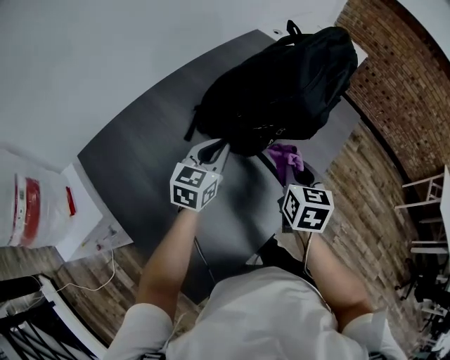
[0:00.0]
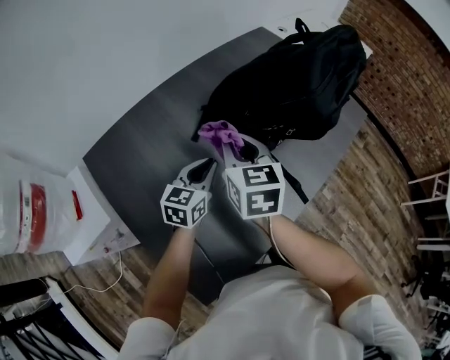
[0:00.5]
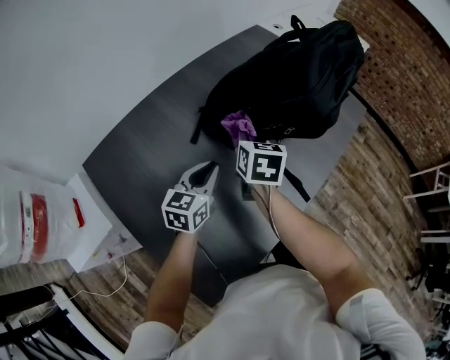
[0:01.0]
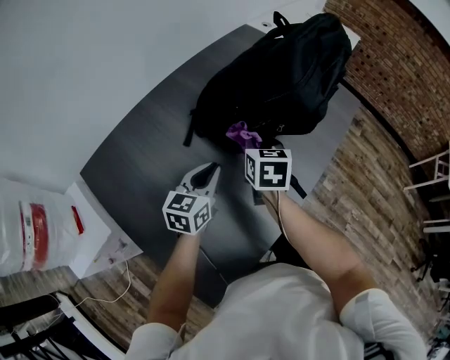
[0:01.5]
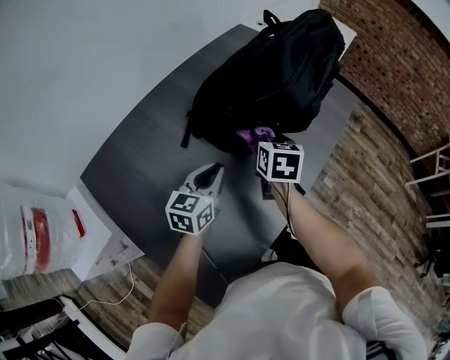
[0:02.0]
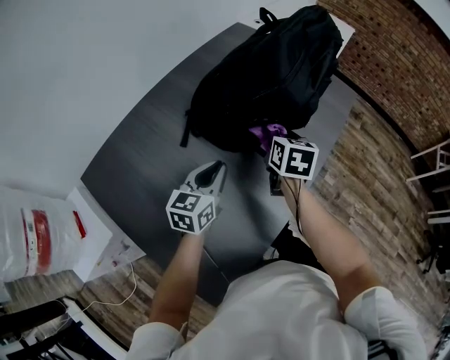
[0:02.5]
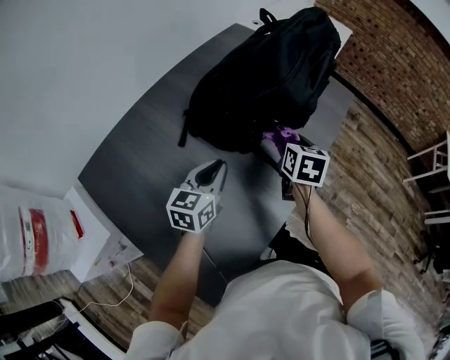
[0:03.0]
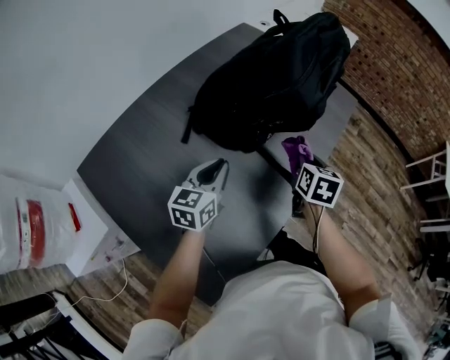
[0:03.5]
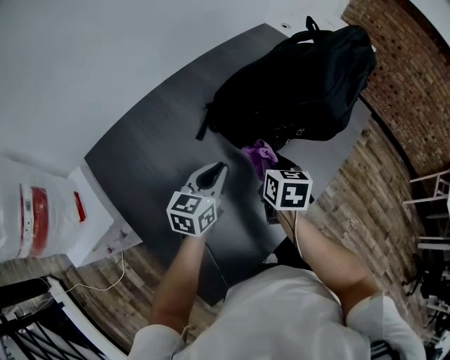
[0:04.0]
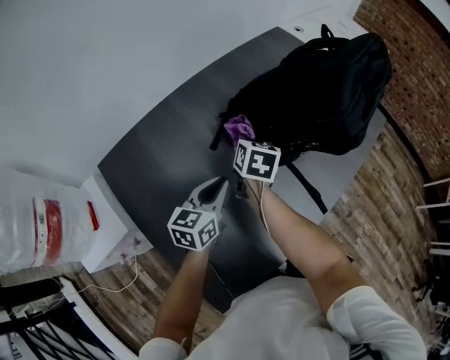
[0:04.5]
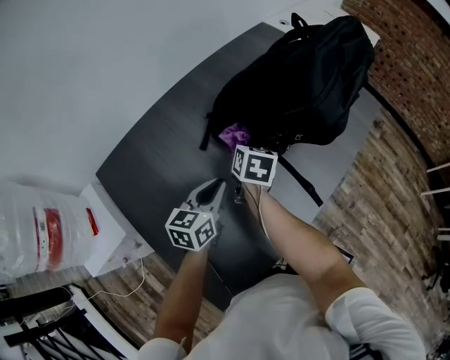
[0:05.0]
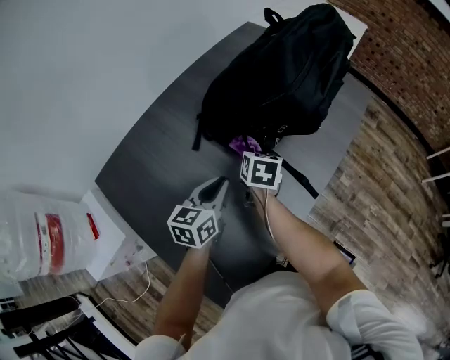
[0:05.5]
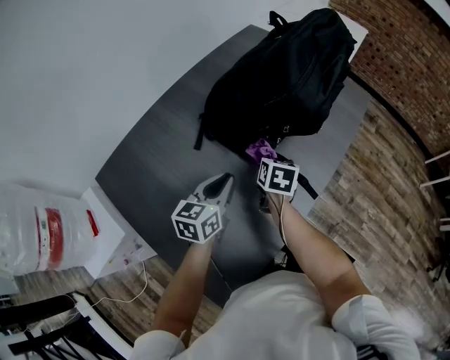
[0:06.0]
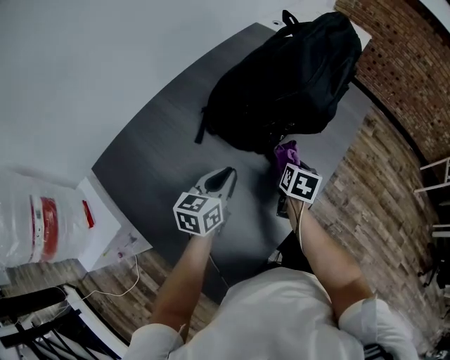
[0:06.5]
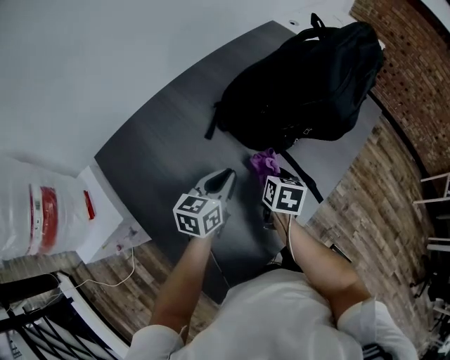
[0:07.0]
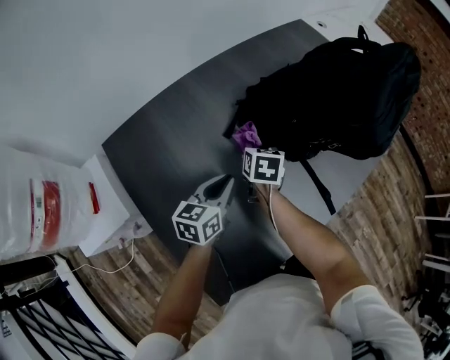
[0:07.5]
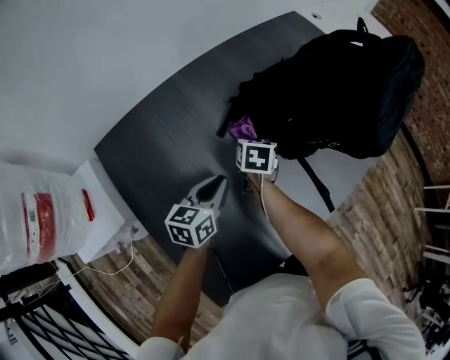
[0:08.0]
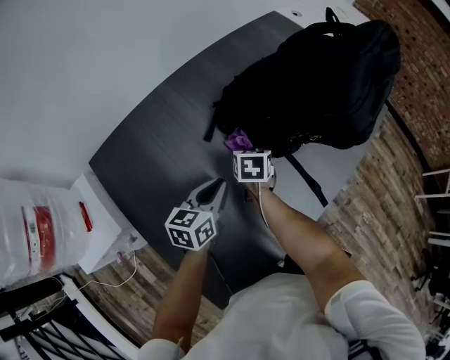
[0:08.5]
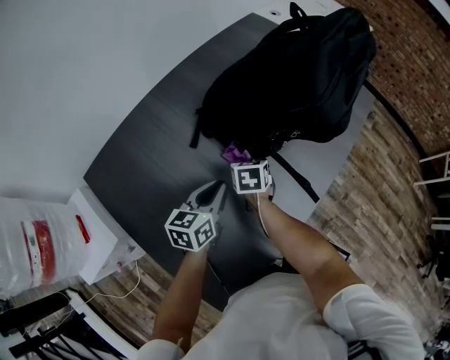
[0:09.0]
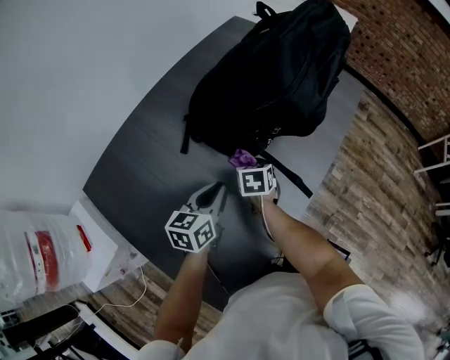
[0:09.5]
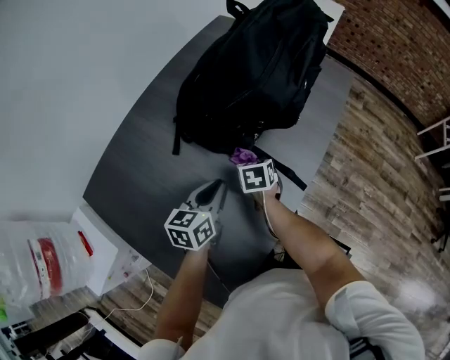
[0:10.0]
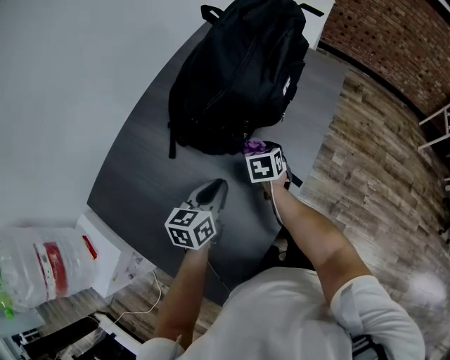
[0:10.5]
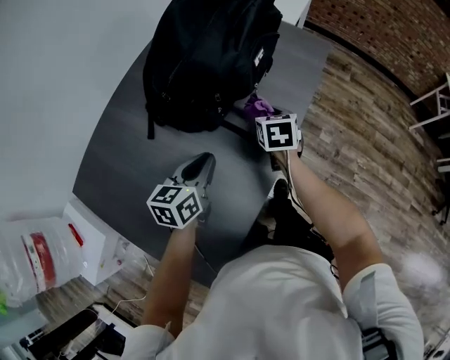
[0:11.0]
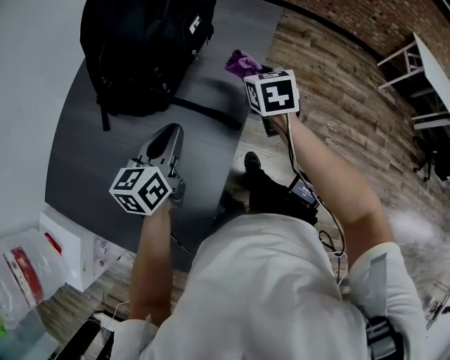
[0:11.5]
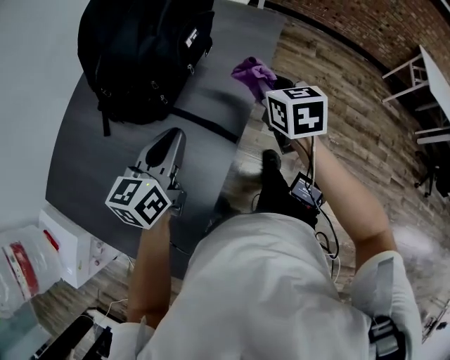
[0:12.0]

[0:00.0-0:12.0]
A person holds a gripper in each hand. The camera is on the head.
0:00.0 to 0:02.0: The right gripper shifts approximately 5 cm forward, and reaches roughly 20 cm to the left, then returns, while the left gripper ends up some 5 cm from where it was.
0:02.0 to 0:04.0: The right gripper travels backward by roughly 5 cm, and travels to the right and back again, some 10 cm each way.
0:04.0 to 0:06.0: The right gripper is displaced downward by roughly 5 cm, and reaches approximately 10 cm to the left, then returns.
0:06.0 to 0:08.0: The right gripper is displaced to the left by some 15 cm. The left gripper is displaced to the left and downward by some 10 cm.
0:08.0 to 0:10.0: Both grippers move to the right, roughly 15 cm.
0:10.0 to 0:12.0: The right gripper goes approximately 30 cm to the right and upward; the left gripper travels to the right and upward by roughly 20 cm.

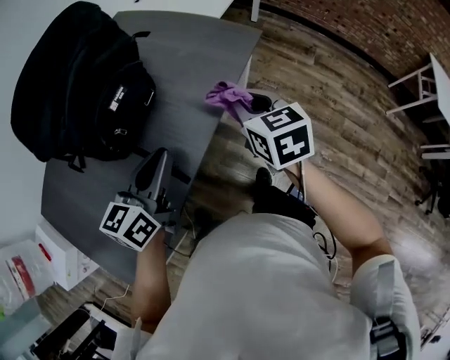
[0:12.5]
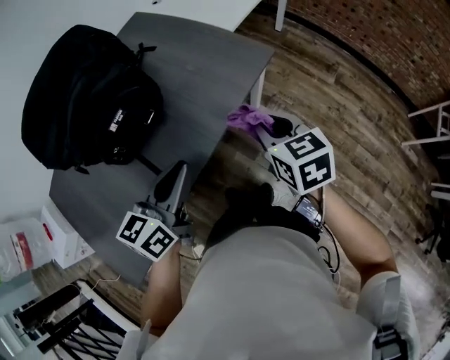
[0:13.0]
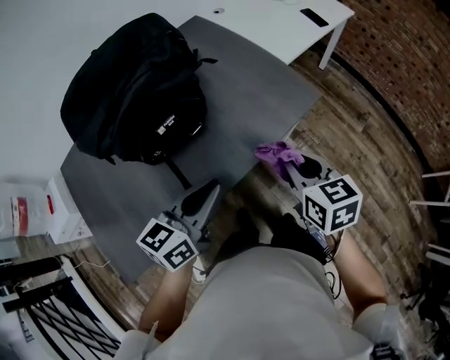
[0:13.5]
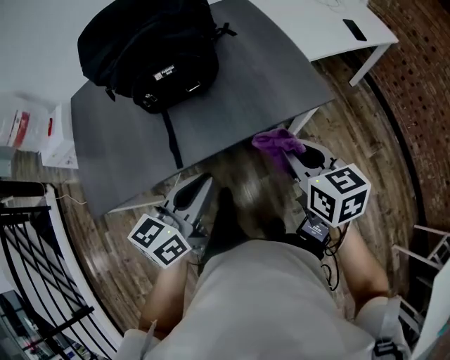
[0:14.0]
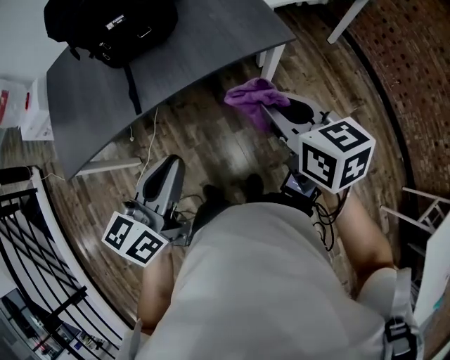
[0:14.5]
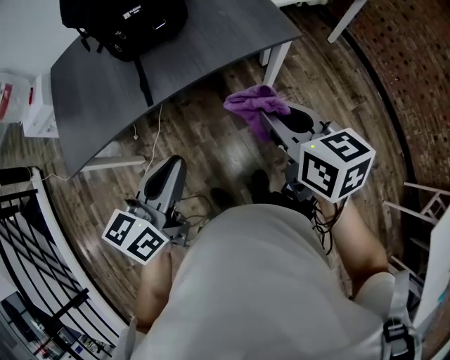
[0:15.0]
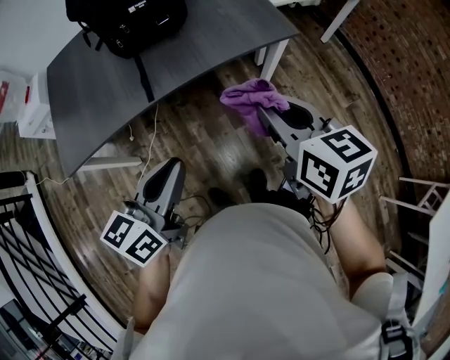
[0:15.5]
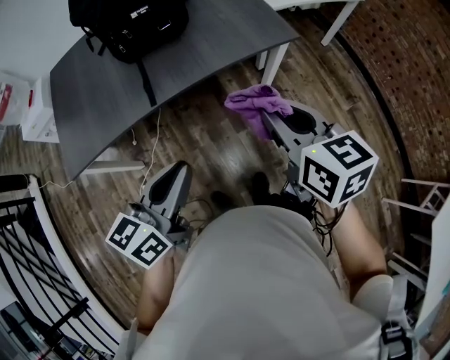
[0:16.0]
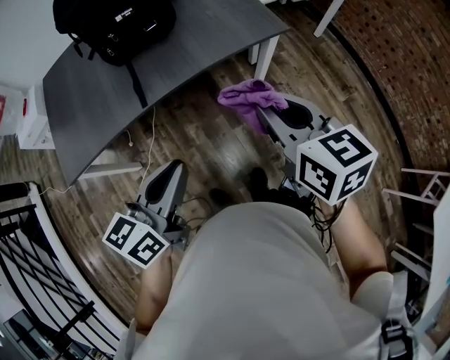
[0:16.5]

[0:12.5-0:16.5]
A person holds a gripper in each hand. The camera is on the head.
0:12.5 to 0:14.5: The right gripper ends up approximately 20 cm from where it was, and rotates some 40 degrees. Meanwhile the left gripper moves roughly 30 cm, and turns by approximately 40 degrees.
0:14.5 to 0:16.5: The right gripper shifts roughly 10 cm backward and to the left, while the left gripper goes roughly 5 cm backward.

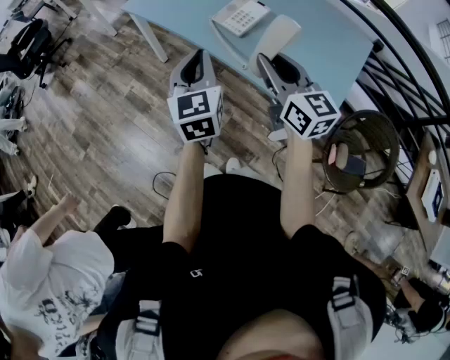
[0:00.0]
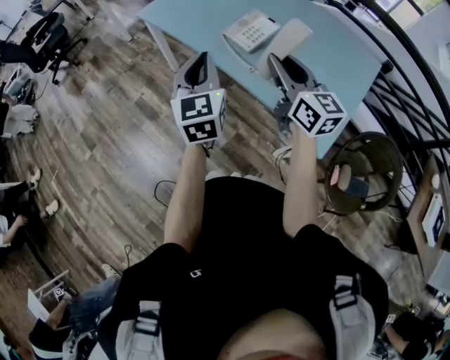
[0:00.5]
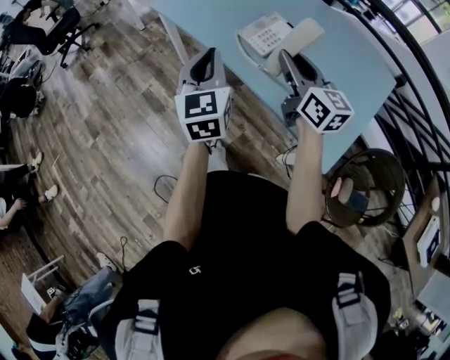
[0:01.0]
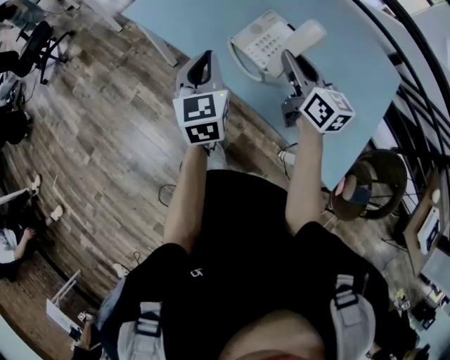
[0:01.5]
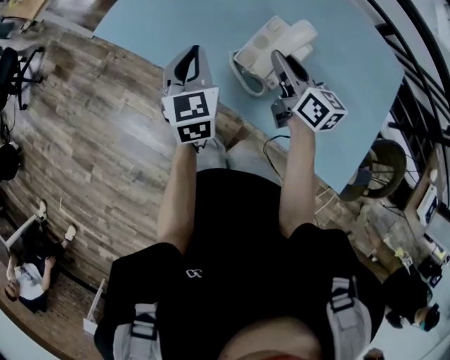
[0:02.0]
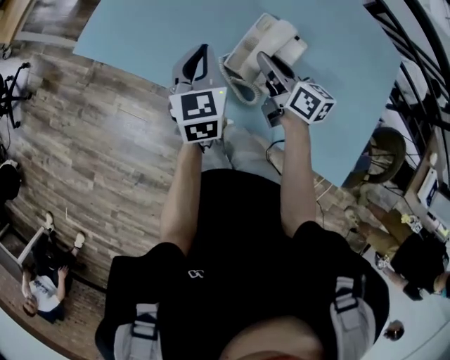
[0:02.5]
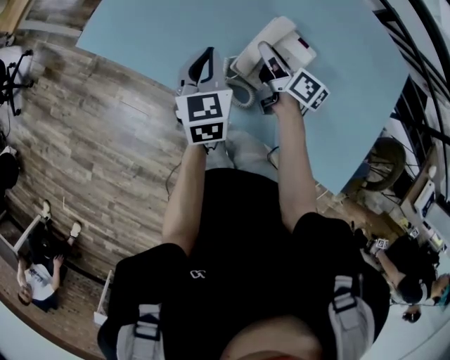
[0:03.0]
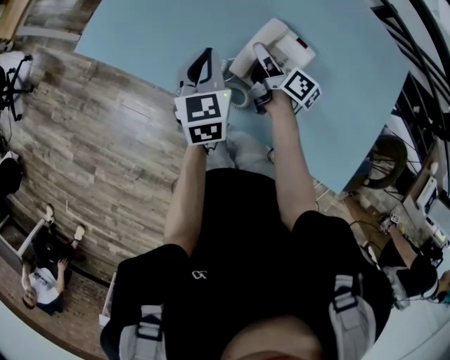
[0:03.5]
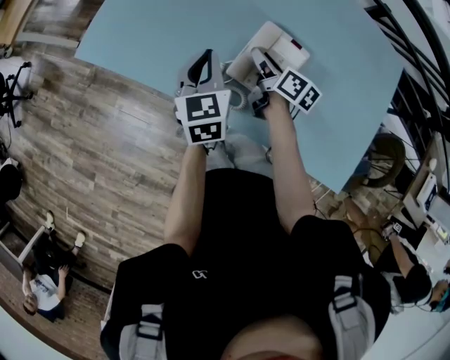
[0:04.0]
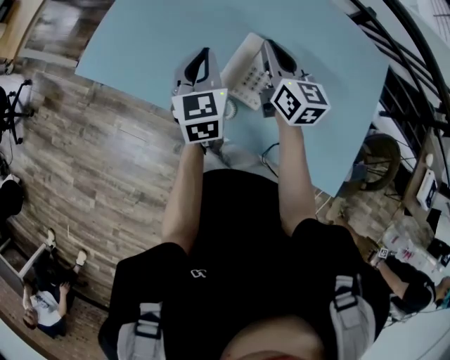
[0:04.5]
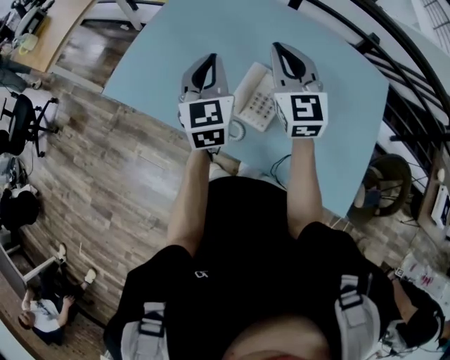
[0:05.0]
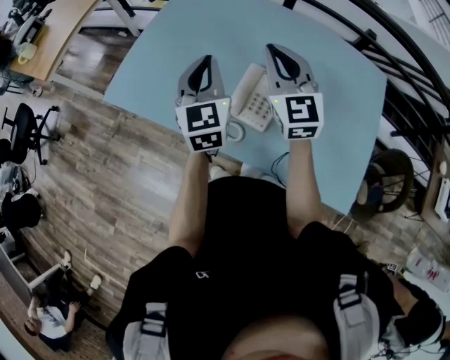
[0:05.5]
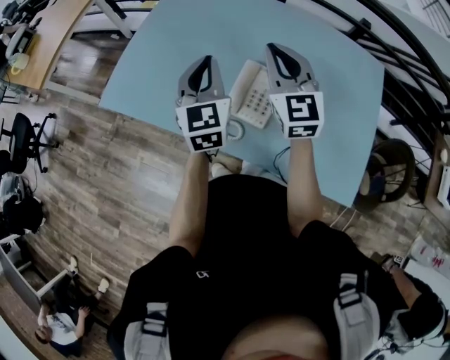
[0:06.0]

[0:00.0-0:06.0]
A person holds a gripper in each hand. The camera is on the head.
0:00.0 to 0:02.0: Both grippers move forward, approximately 35 cm. The right gripper changes its angle by approximately 30 degrees.
0:02.0 to 0:04.0: The left gripper shifts roughly 10 cm to the right and forward; the right gripper is displaced downward and forward by roughly 15 cm, swivels approximately 30 degrees, and opens its fingers.
0:04.0 to 0:06.0: The left gripper heads upward, covering approximately 15 cm, and changes its angle by approximately 20 degrees; the right gripper travels upward by some 30 cm, rotates around the line of its fingers by some 70 degrees, counterclockwise from behind, and closes its fingers.

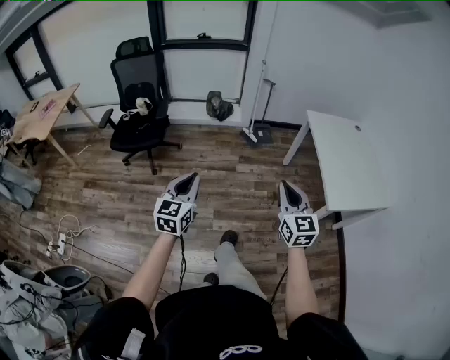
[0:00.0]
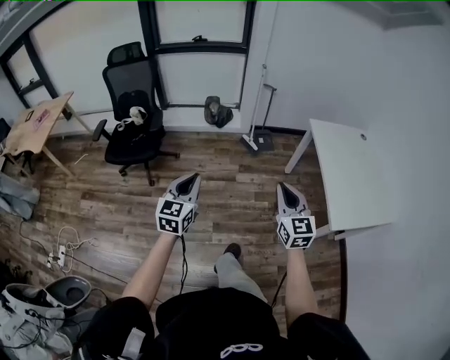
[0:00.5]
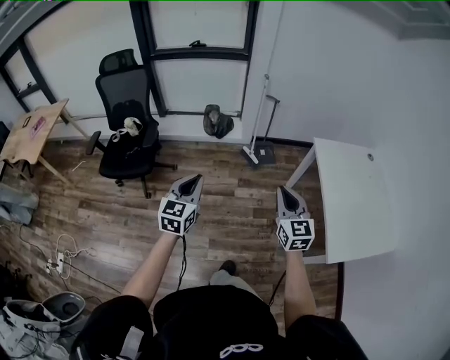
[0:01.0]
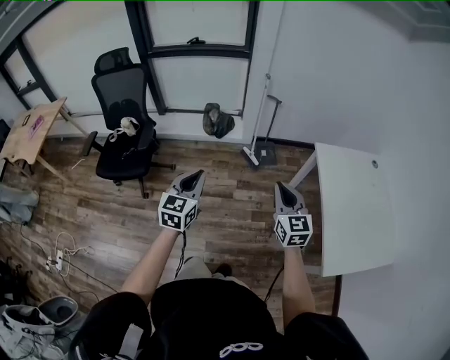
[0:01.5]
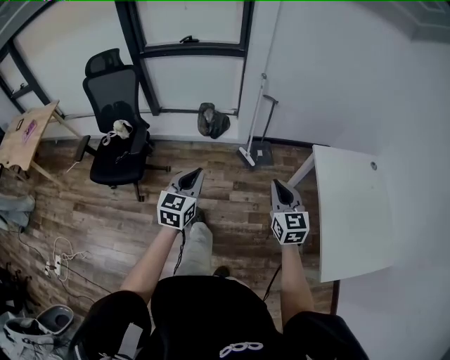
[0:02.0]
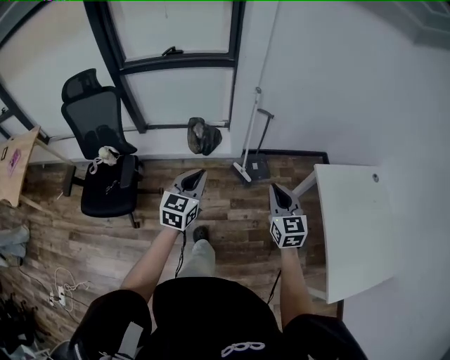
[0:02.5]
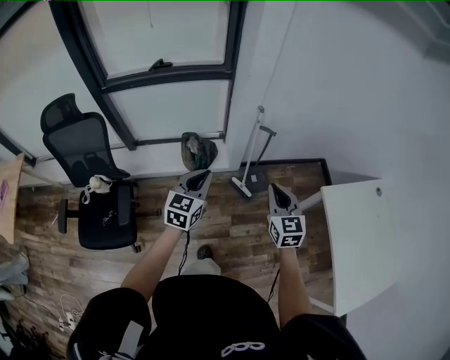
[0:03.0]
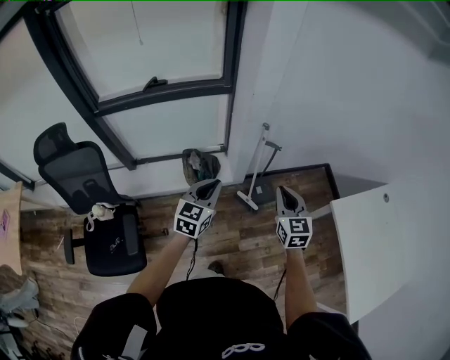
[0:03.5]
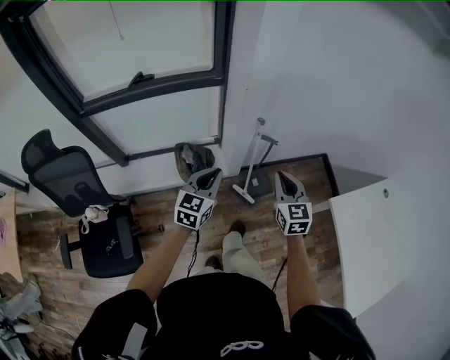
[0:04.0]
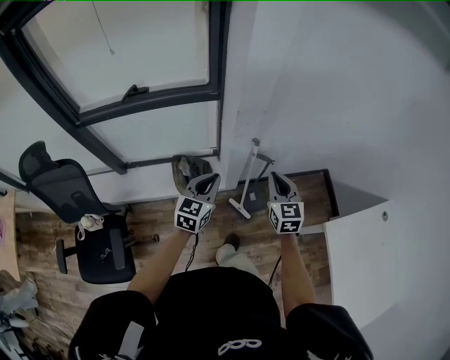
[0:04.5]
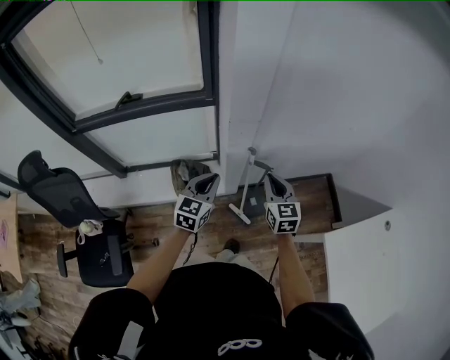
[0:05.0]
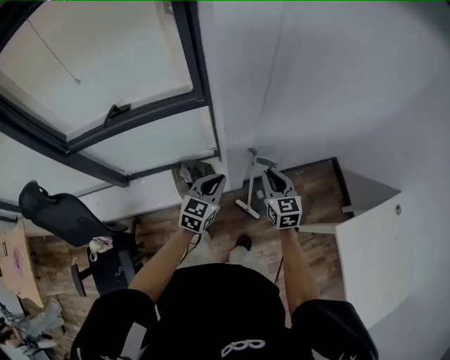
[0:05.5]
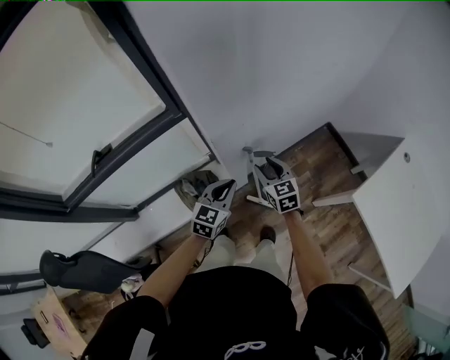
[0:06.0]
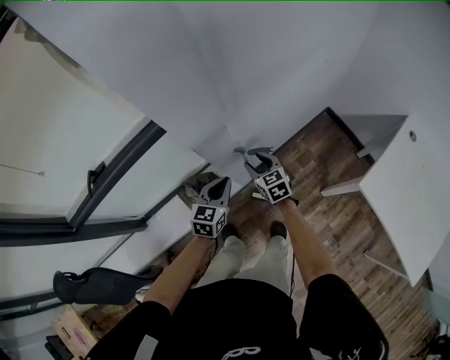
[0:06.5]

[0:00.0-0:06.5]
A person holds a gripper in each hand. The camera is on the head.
0:00.0 to 0:02.0: The two grippers travel together, forward, some 50 cm.
0:02.0 to 0:04.5: The two grippers travel together, forward, some 60 cm.
0:04.5 to 0:06.5: The right gripper moves downward and forward, about 25 cm, and opens its fingers. Meanwhile the left gripper moves forward and downward, about 20 cm, and changes its angle by approximately 20 degrees.
